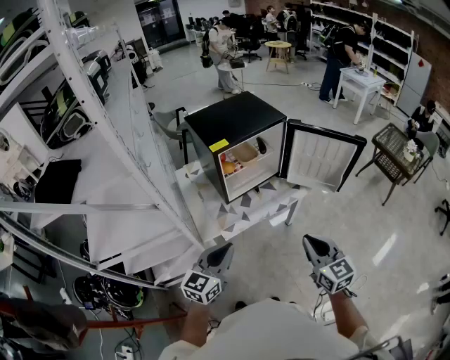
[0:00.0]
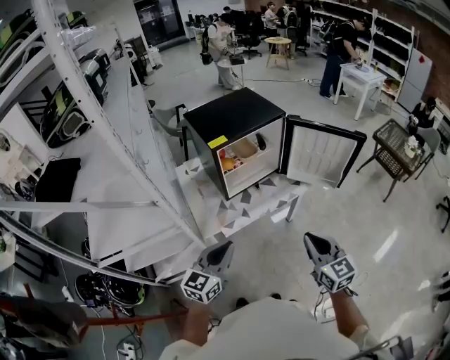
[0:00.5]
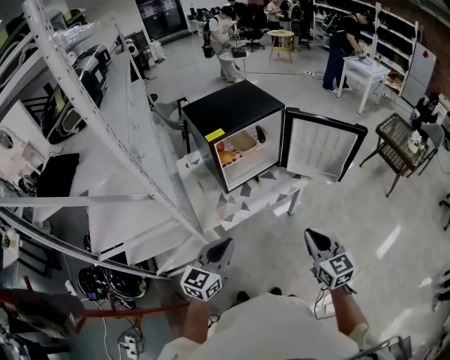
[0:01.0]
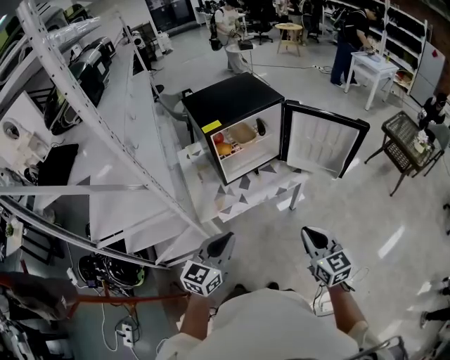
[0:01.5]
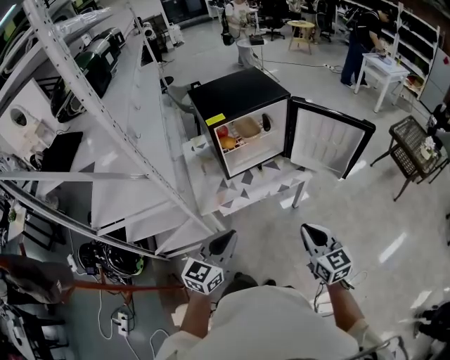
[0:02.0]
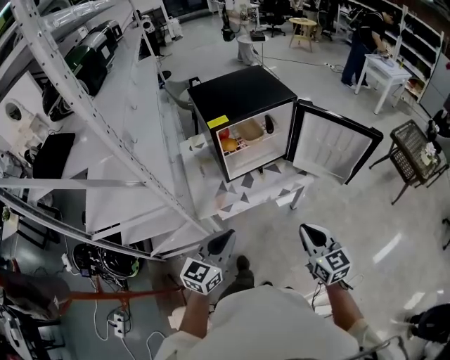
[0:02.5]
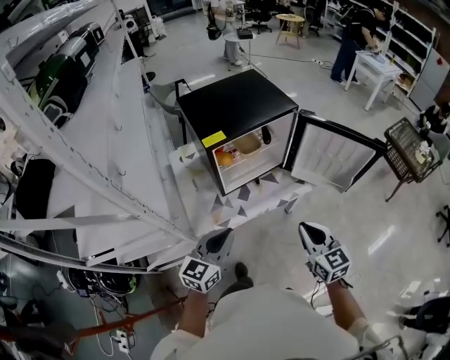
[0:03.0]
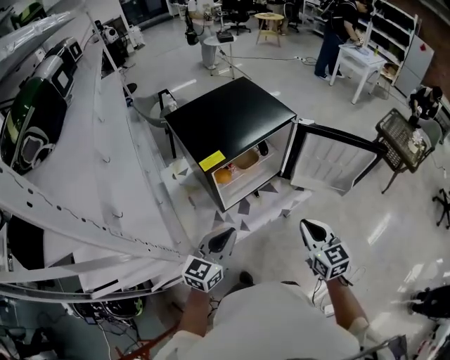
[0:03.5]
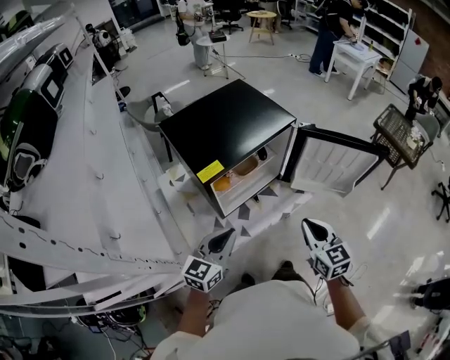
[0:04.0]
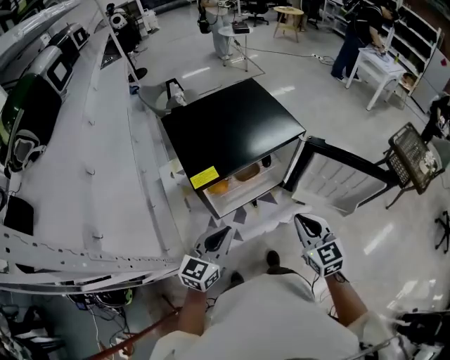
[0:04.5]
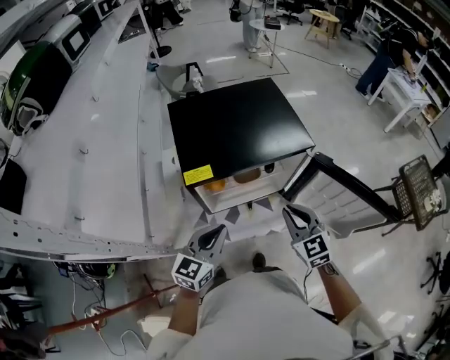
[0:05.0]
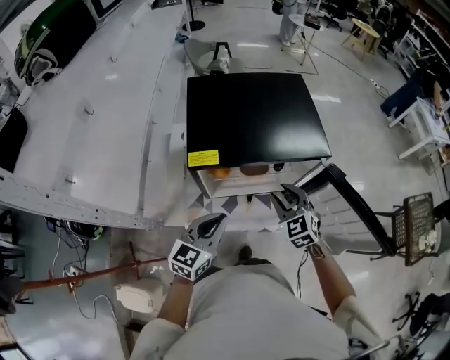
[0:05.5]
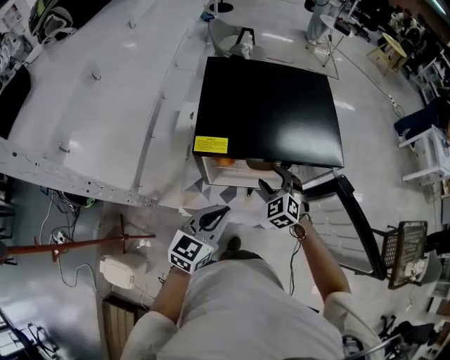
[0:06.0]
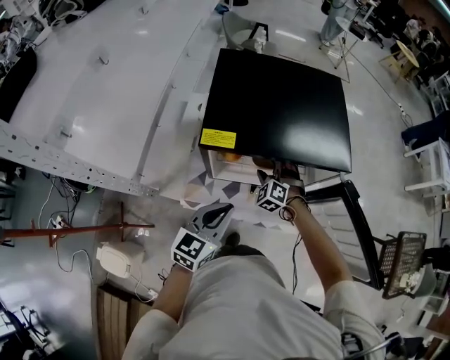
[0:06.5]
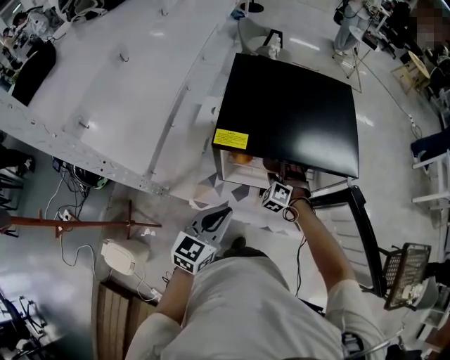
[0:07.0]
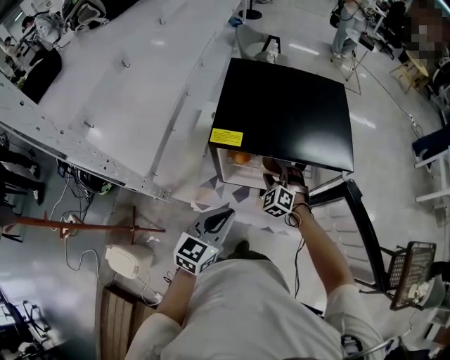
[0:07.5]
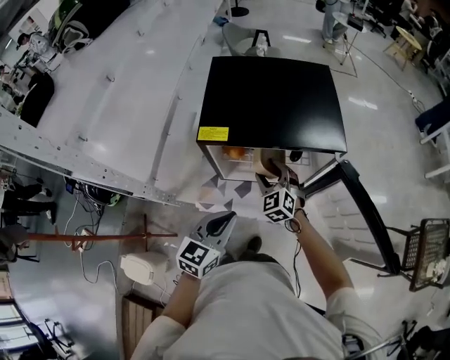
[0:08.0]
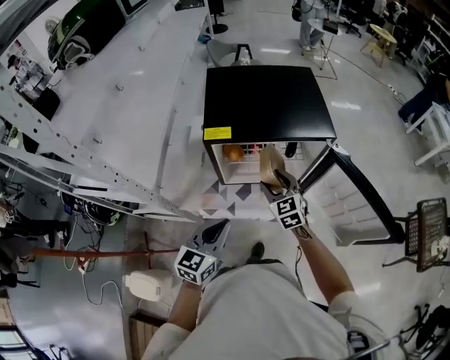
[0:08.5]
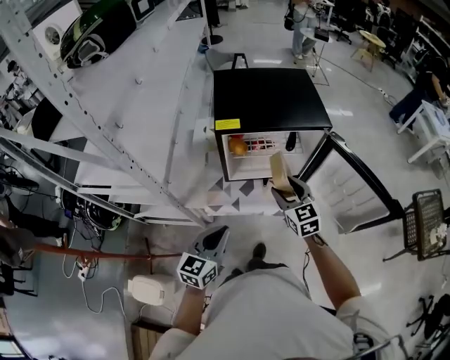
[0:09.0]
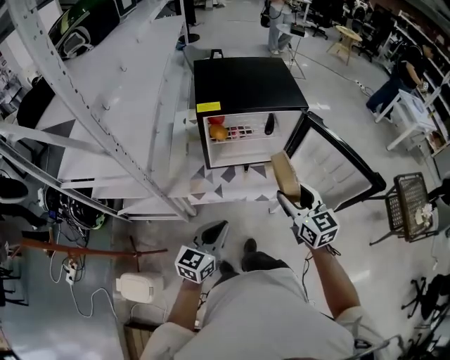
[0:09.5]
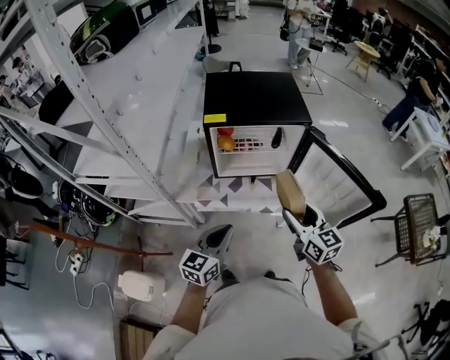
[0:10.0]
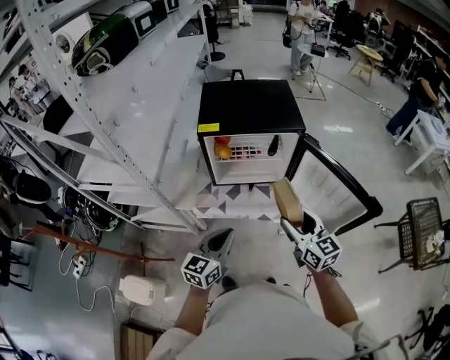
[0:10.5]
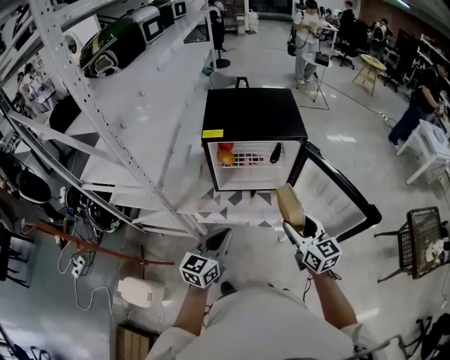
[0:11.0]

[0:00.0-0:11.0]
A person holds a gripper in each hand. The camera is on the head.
0:00.0 to 0:02.0: The grippers both shift to the right by about 5 cm.
0:02.0 to 0:03.5: Both grippers move forward, roughly 20 cm.
0:03.5 to 0:05.5: The right gripper changes place by roughly 25 cm, changes its angle by approximately 50 degrees, and opens up. Meanwhile the left gripper ends up approximately 15 cm from where it was, and turns by about 30 degrees.
0:05.5 to 0:07.5: The right gripper goes some 15 cm downward, to the left and forward, and swivels approximately 30 degrees.
0:07.5 to 0:09.0: The left gripper goes roughly 15 cm backward. Meanwhile the right gripper is displaced backward and upward by some 25 cm, and twists roughly 50 degrees clockwise, seen from behind.
0:09.0 to 0:11.0: The left gripper moves to the right, roughly 10 cm. The right gripper moves backward, to the right and upward, approximately 20 cm, and rotates roughly 20 degrees.

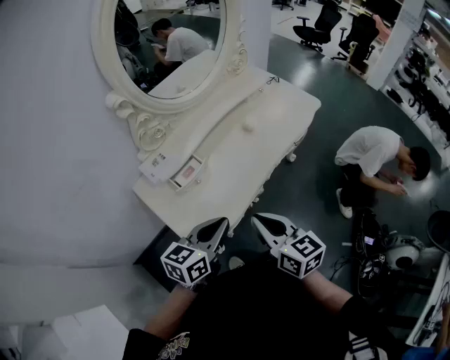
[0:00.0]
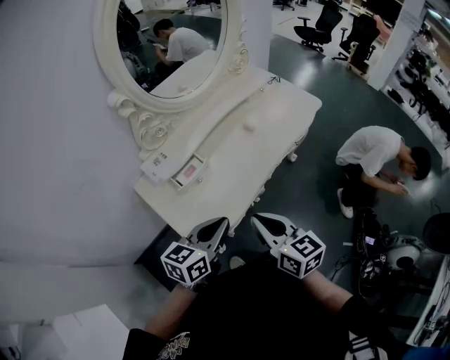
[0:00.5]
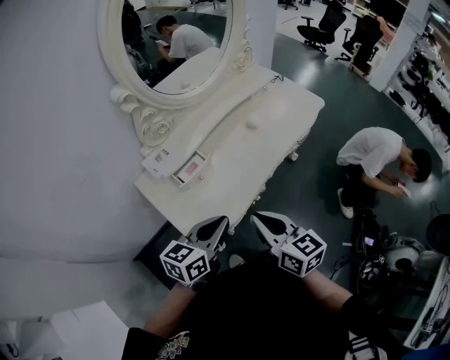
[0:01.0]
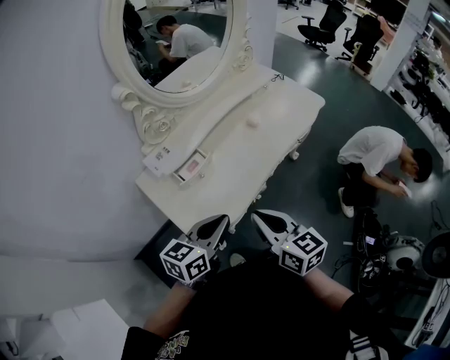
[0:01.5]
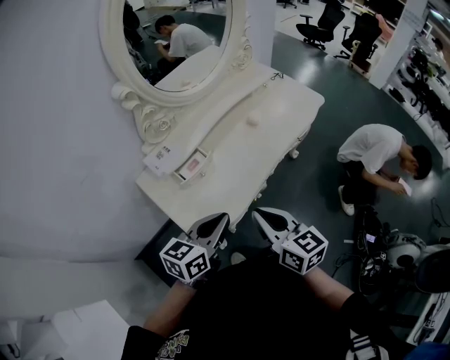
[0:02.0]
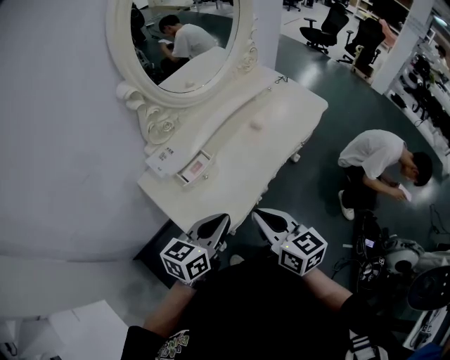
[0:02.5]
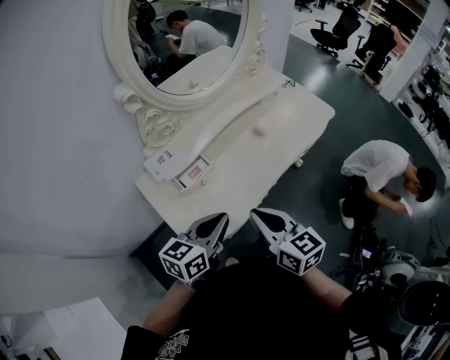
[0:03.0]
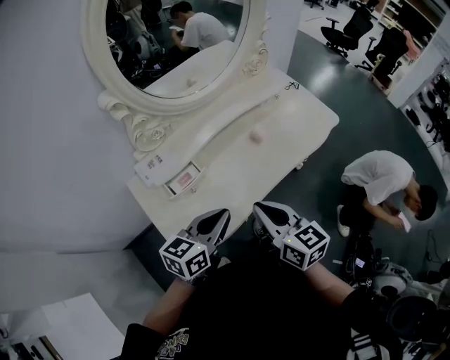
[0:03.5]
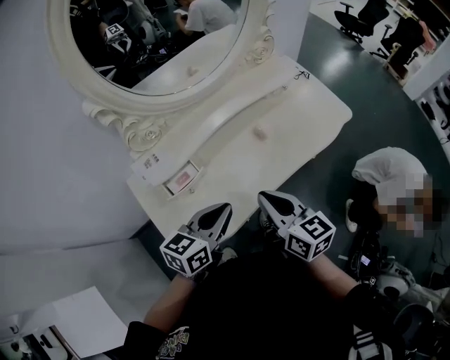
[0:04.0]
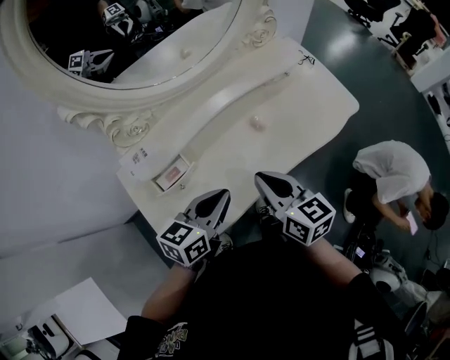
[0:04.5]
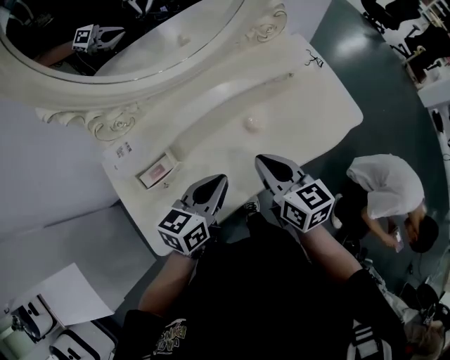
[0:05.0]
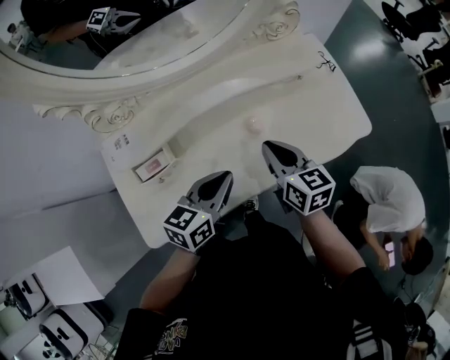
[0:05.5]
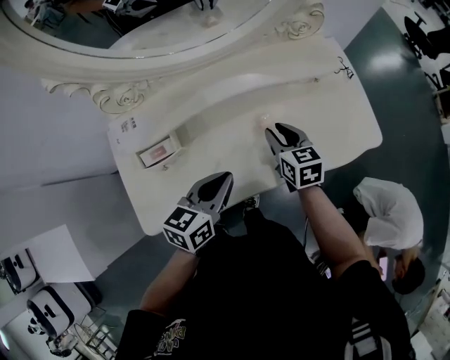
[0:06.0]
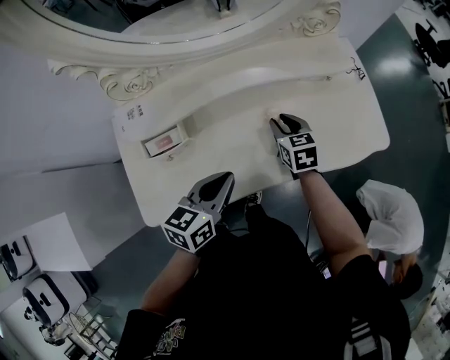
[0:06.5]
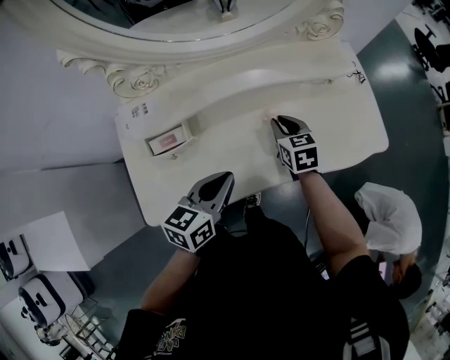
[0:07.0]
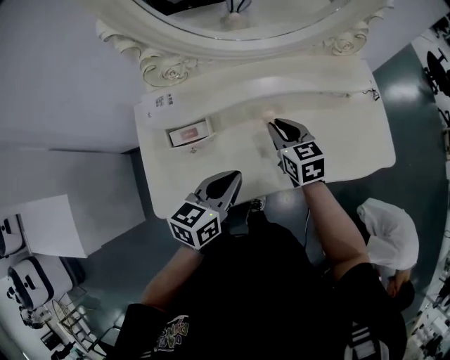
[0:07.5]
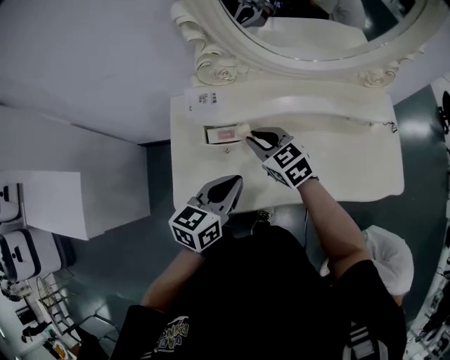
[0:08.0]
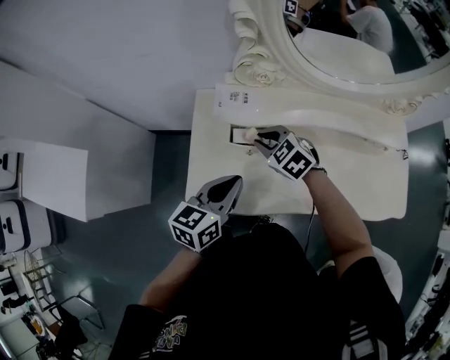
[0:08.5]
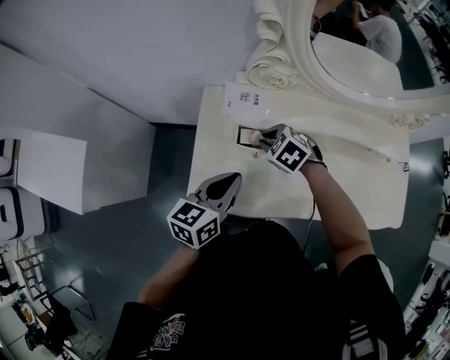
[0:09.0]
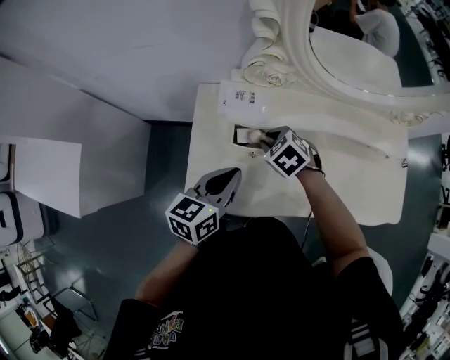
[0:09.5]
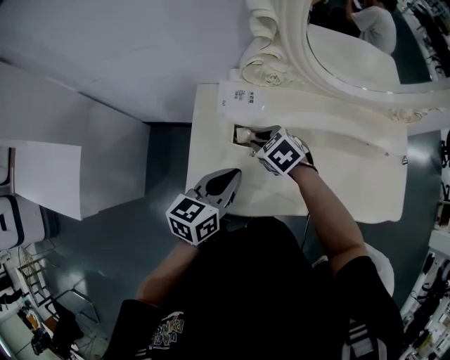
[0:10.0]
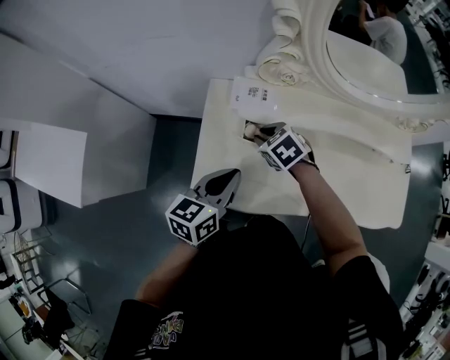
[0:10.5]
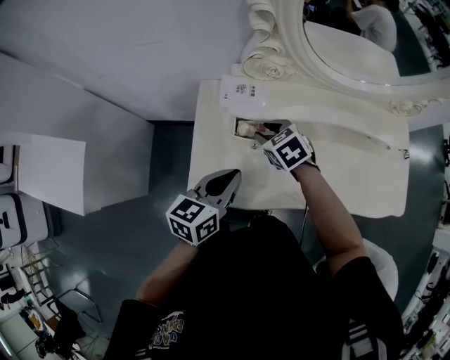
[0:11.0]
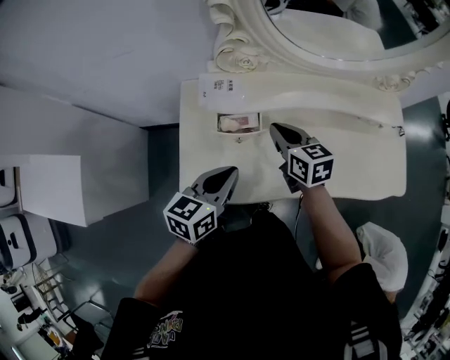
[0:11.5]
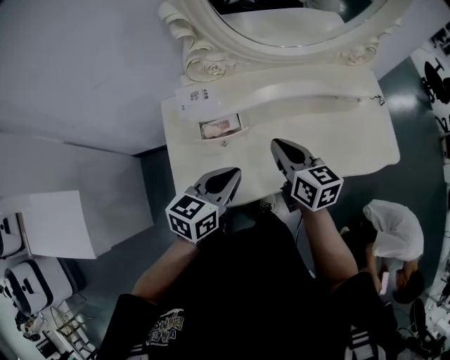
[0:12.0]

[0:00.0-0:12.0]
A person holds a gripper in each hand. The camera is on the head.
0:00.0 to 0:02.0: There are only small adjustments of the grippers.
0:02.0 to 0:04.0: The grippers both shift forward and to the right by some 20 cm.
0:04.0 to 0:06.0: The right gripper goes about 30 cm forward and downward, turns by some 30 degrees, and opens up. The left gripper travels forward, to the right and downward by about 15 cm, and rotates about 20 degrees.
0:06.0 to 0:08.0: The right gripper moves roughly 30 cm, and turns by about 40 degrees. The left gripper ends up some 15 cm from where it was.
0:08.0 to 0:10.0: The right gripper heads to the left and downward, covering approximately 10 cm, and rotates roughly 30 degrees. The left gripper shifts some 10 cm to the left and forward.
0:10.0 to 0:12.0: The left gripper changes place by about 10 cm, and turns by roughly 20 degrees, while the right gripper moves approximately 20 cm, and points its fingers roughly 40 degrees further upward.

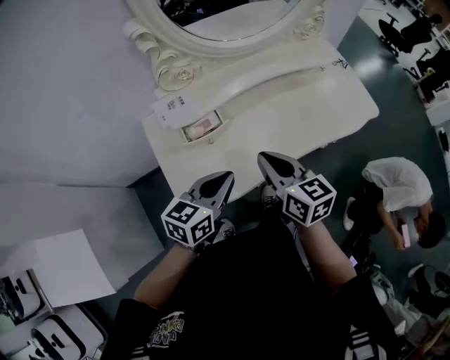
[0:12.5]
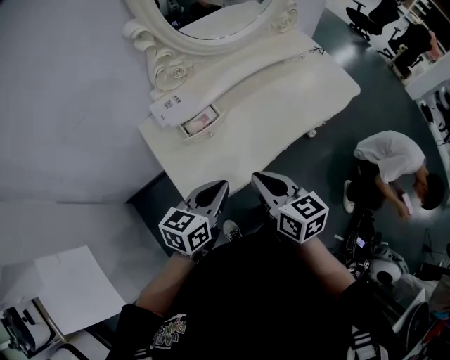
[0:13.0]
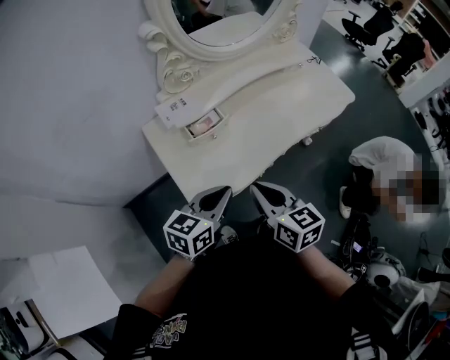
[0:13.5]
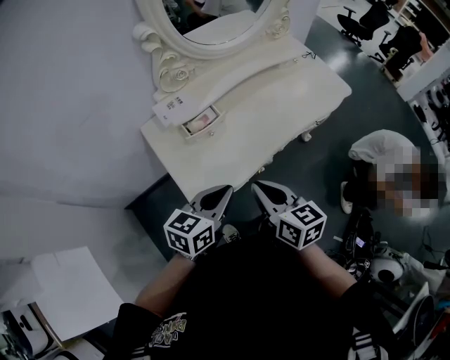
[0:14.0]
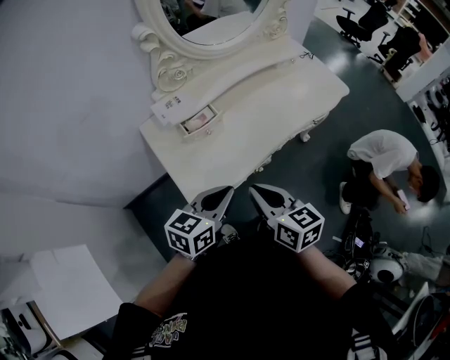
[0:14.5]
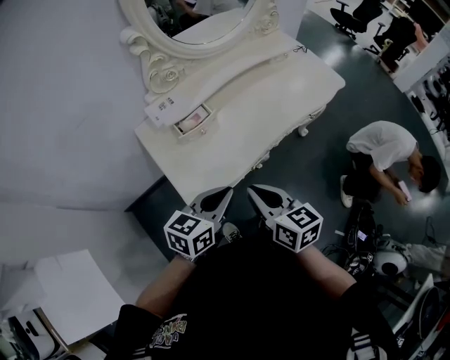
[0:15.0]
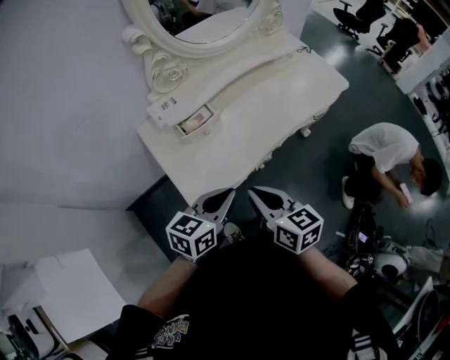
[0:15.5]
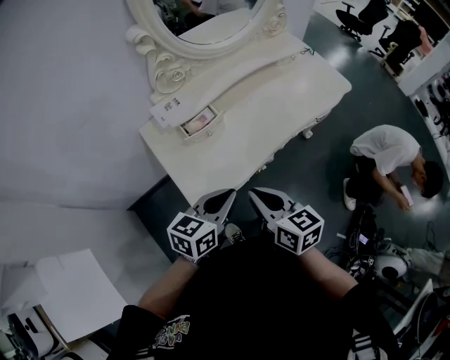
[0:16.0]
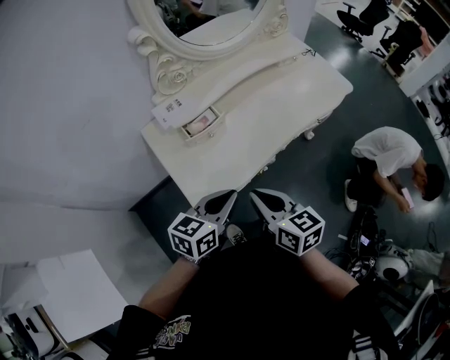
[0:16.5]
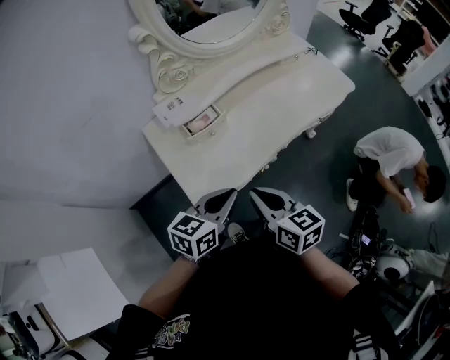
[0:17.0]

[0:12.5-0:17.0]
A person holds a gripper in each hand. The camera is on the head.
0:12.5 to 0:14.5: The two grippers go about 15 cm backward.
0:14.5 to 0:17.0: The grippers make only small movements.
